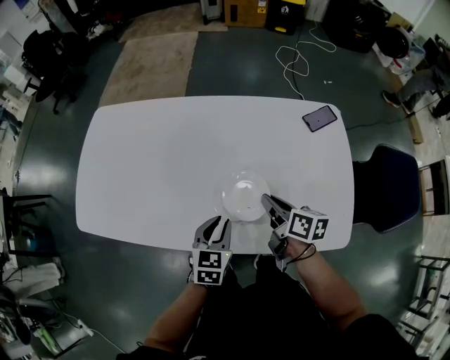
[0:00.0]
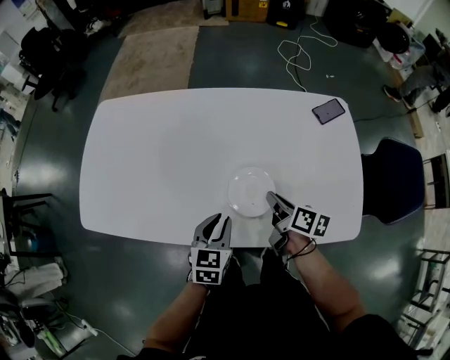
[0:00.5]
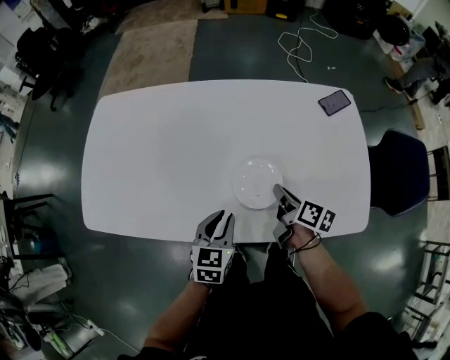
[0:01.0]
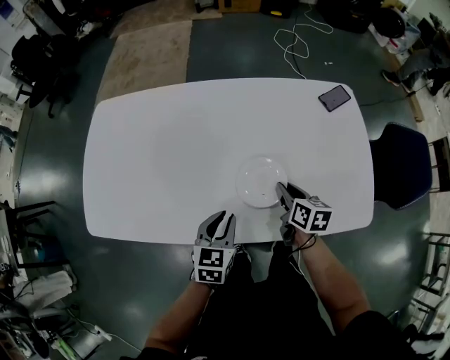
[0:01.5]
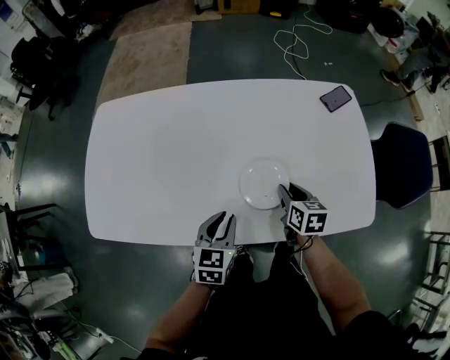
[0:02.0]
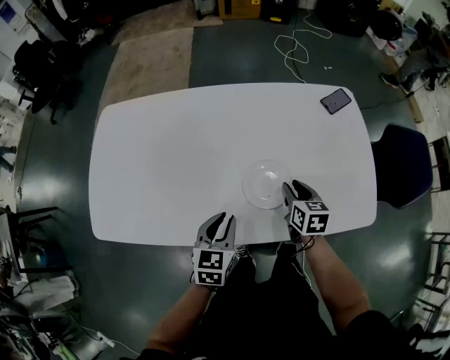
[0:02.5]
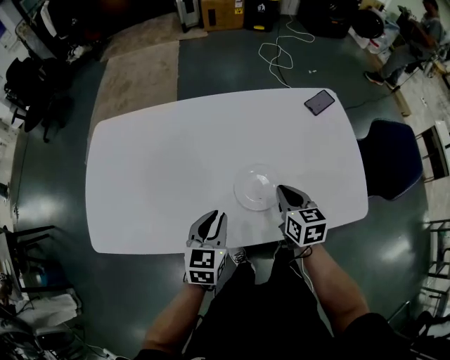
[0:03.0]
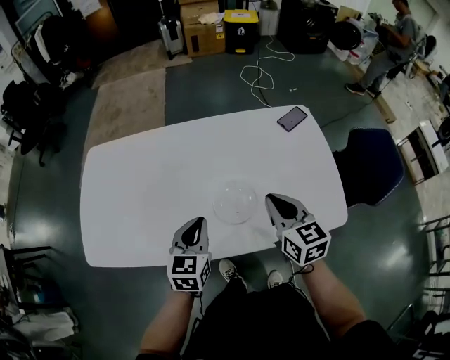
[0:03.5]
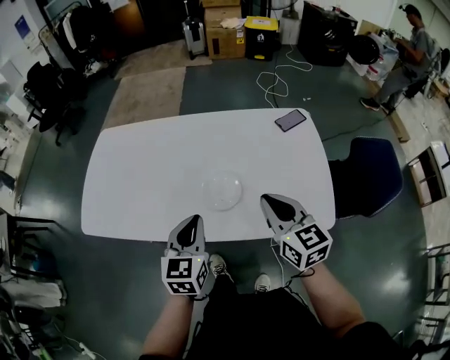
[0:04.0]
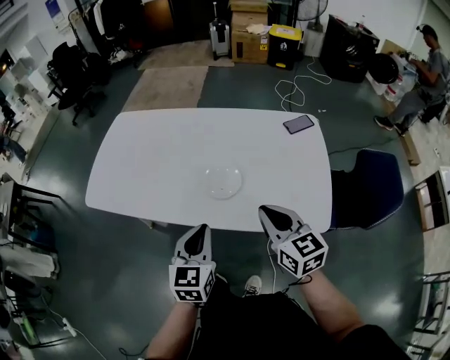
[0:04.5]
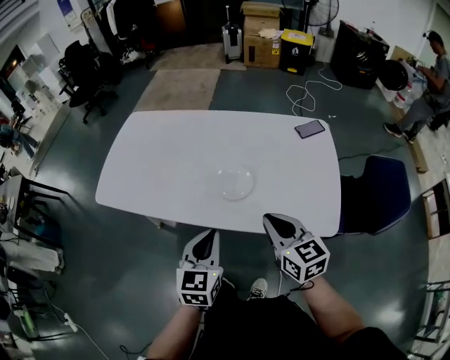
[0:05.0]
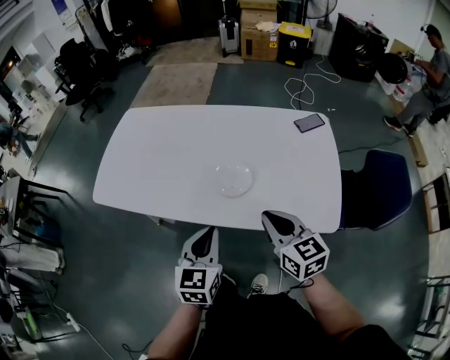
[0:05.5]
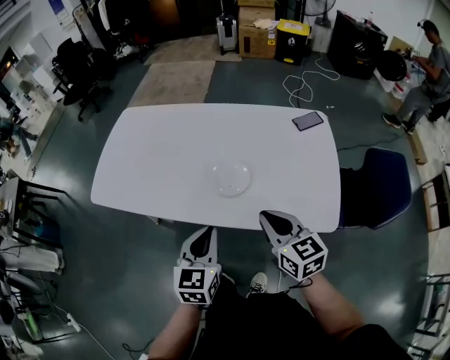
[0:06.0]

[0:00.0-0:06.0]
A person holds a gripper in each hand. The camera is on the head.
0:00.0 to 0:02.0: The left gripper travels to the left by approximately 10 cm. The right gripper shifts some 5 cm downward, changes its angle by approximately 30 degrees, and opens up.
0:02.0 to 0:04.0: The left gripper travels upward, to the right and backward by about 20 cm, while the right gripper goes approximately 25 cm upward and backward, changes its angle by roughly 40 degrees, and closes.
0:04.0 to 0:06.0: The two grippers go some 10 cm backward.

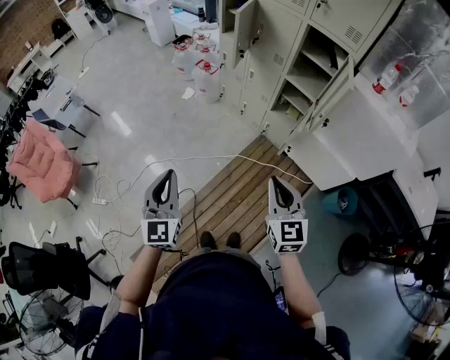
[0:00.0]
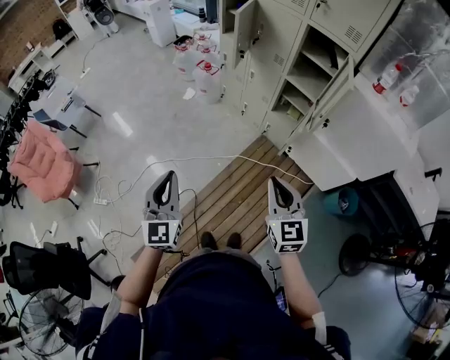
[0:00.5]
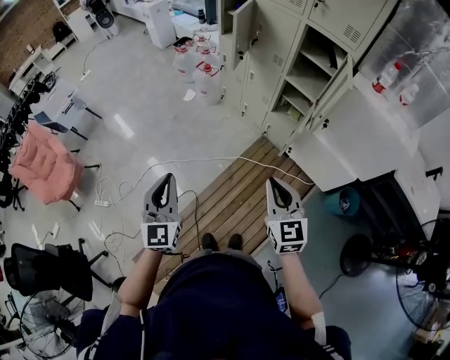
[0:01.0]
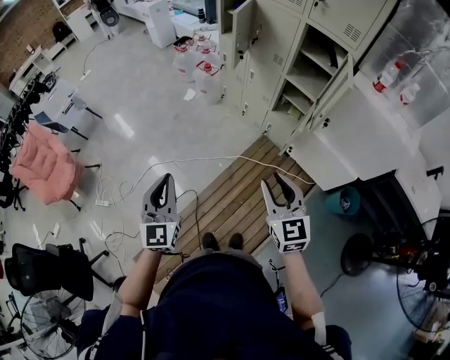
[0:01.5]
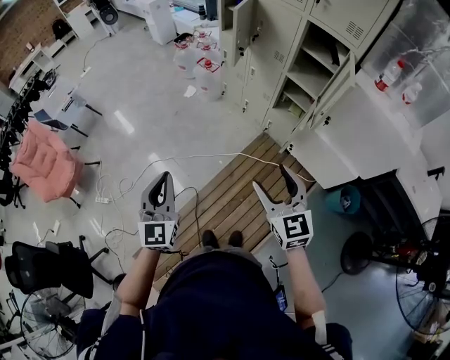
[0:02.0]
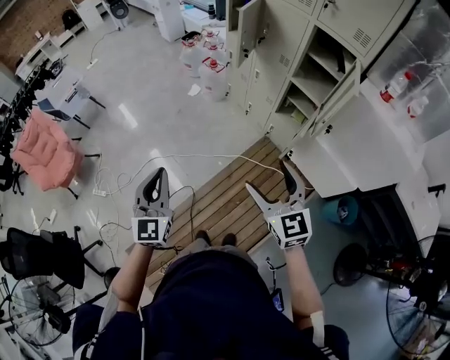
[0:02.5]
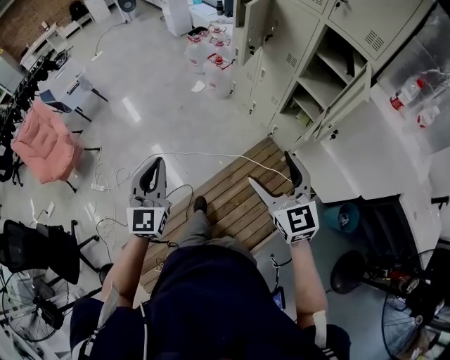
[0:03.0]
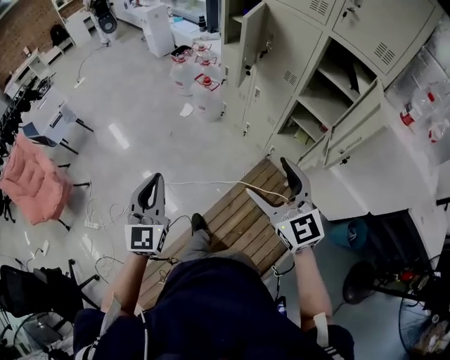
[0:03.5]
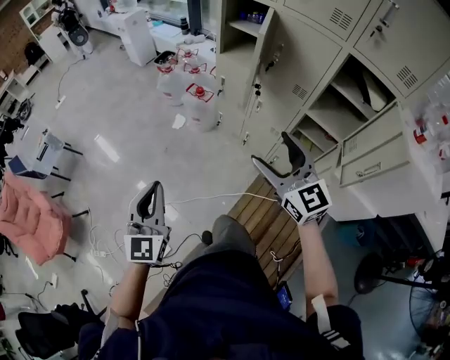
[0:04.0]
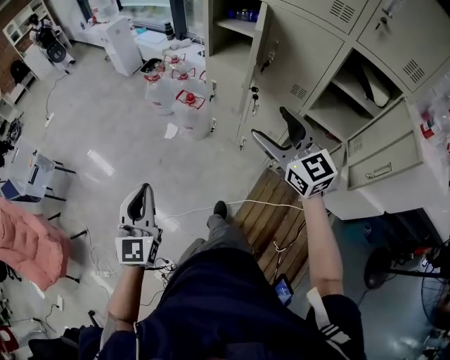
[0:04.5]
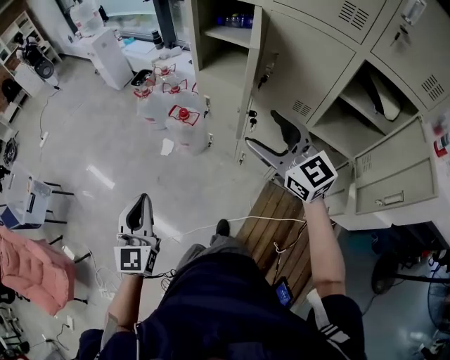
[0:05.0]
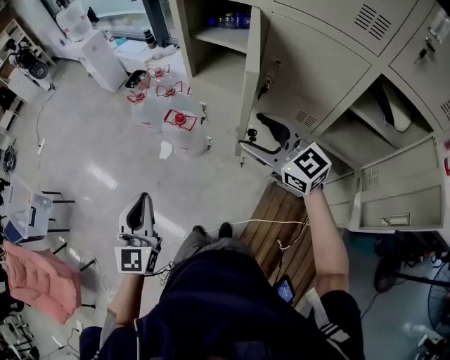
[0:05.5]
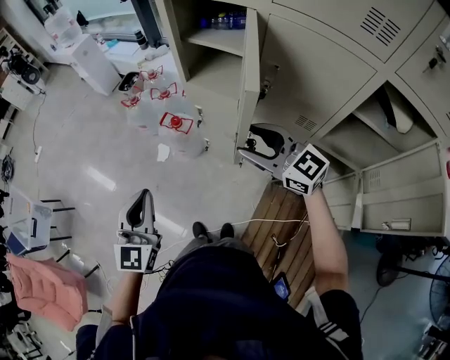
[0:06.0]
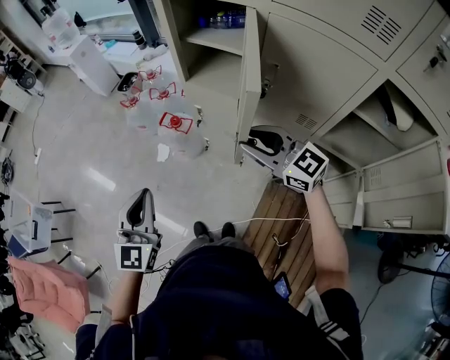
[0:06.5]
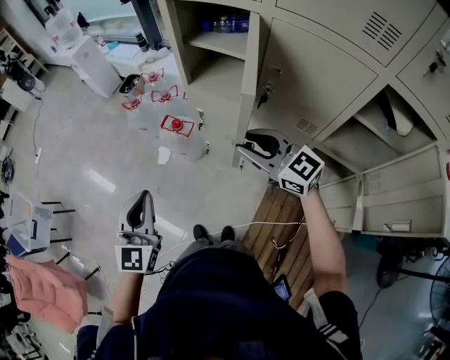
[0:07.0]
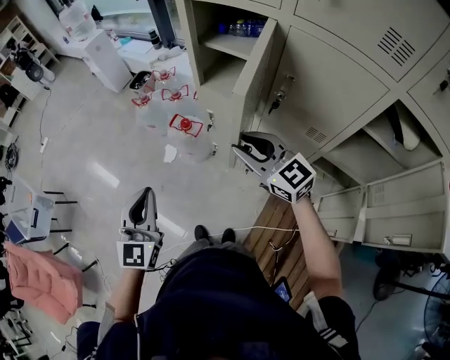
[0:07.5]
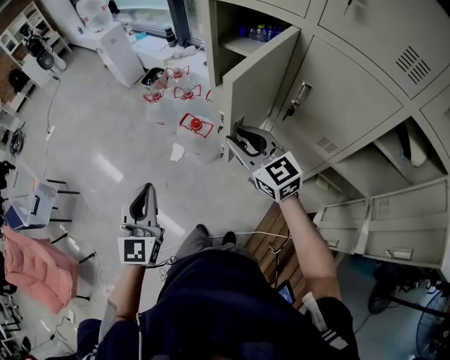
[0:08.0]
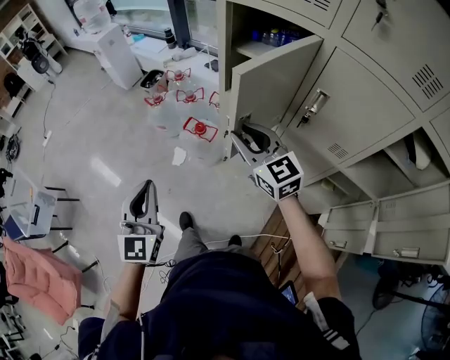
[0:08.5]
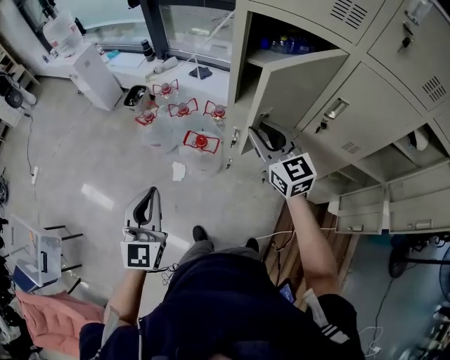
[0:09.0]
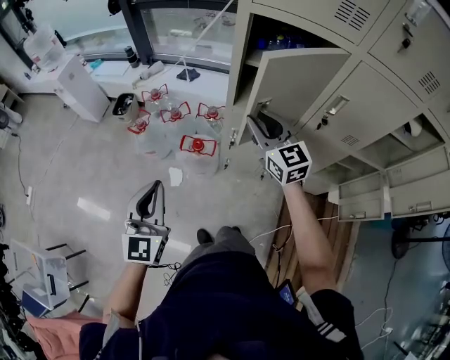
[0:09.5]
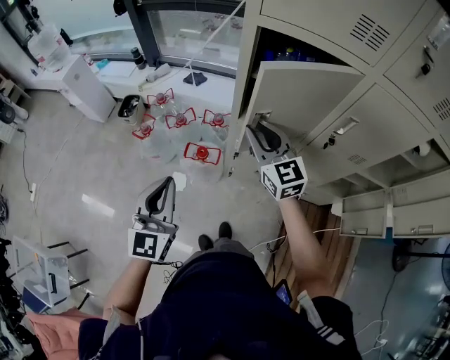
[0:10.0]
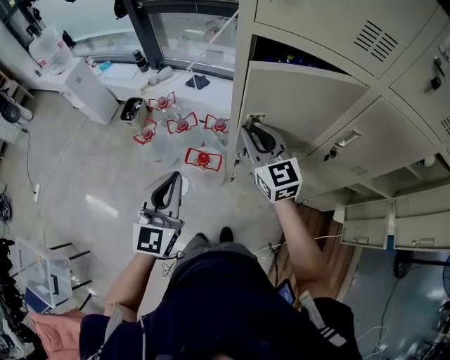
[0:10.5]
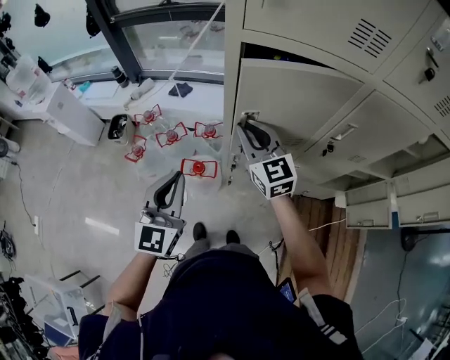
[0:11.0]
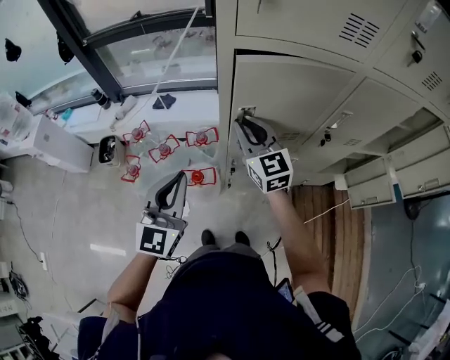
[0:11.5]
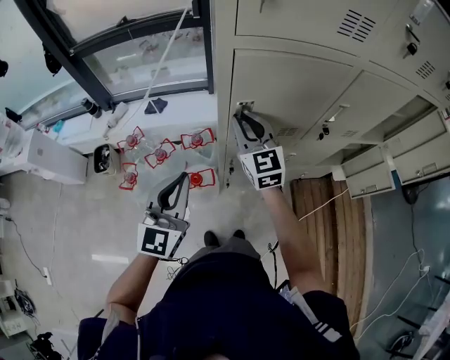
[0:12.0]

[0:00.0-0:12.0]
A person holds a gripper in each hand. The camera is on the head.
0:00.0 to 0:02.0: The right gripper opens.
0:02.0 to 0:04.0: Both grippers move forward, about 40 cm.
0:04.0 to 0:06.0: Both grippers move forward, some 35 cm.
0:06.0 to 0:08.0: The right gripper travels forward and to the left by roughly 10 cm.
0:08.0 to 0:10.0: The right gripper ends up about 20 cm from where it was, and changes its angle by roughly 30 degrees; the left gripper changes place by approximately 25 cm, and turns by roughly 30 degrees.
0:10.0 to 0:12.0: The left gripper ends up approximately 15 cm from where it was, and rotates roughly 30 degrees; the right gripper ends up about 10 cm from where it was, and swivels some 30 degrees.

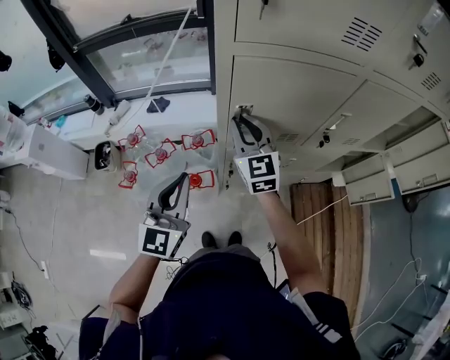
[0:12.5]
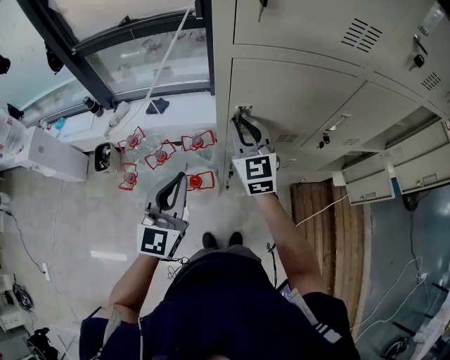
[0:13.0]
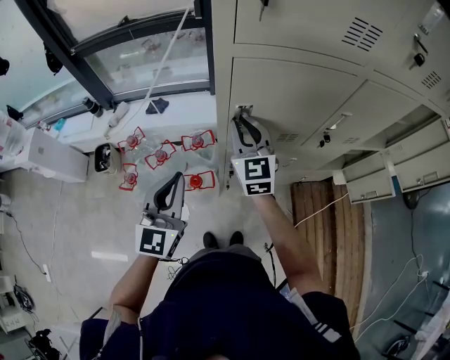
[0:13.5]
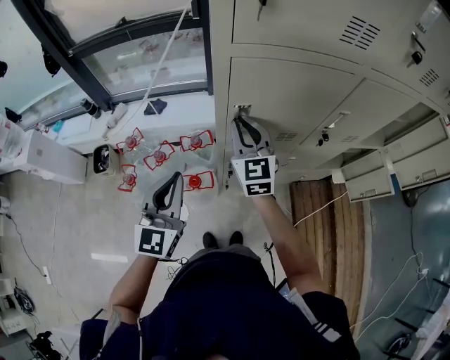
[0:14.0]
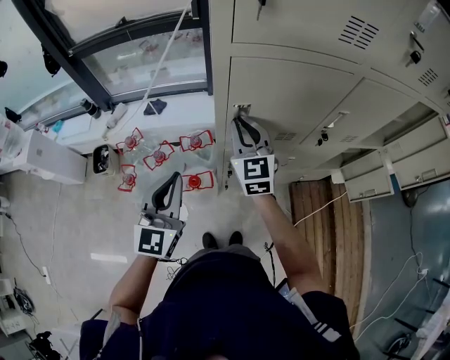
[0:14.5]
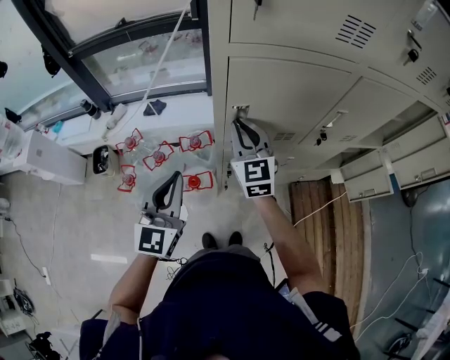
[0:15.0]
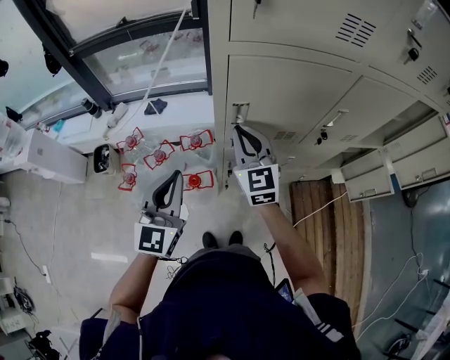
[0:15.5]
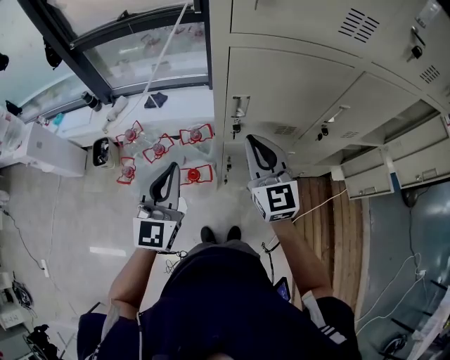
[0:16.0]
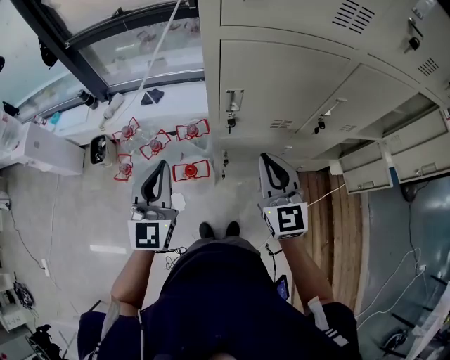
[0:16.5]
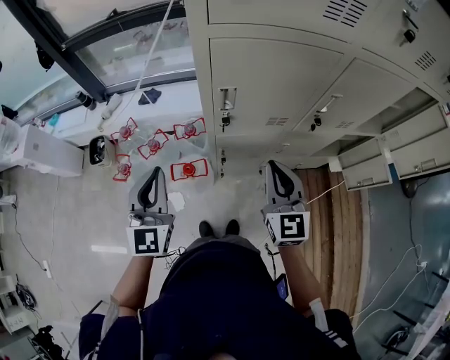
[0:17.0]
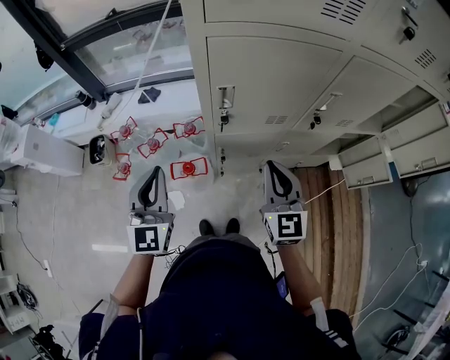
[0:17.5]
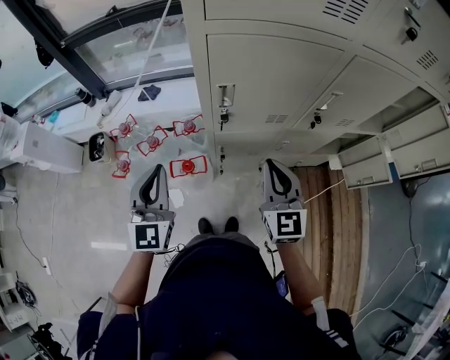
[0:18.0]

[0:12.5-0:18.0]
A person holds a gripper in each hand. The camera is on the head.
0:12.5 to 0:14.5: The grippers make only small movements.
0:14.5 to 0:16.0: The right gripper is displaced backward by approximately 10 cm.
0:16.0 to 0:18.0: The right gripper goes some 10 cm to the right and backward.

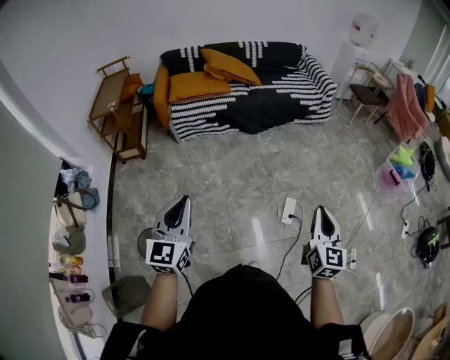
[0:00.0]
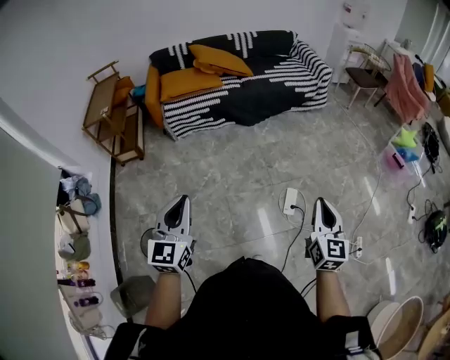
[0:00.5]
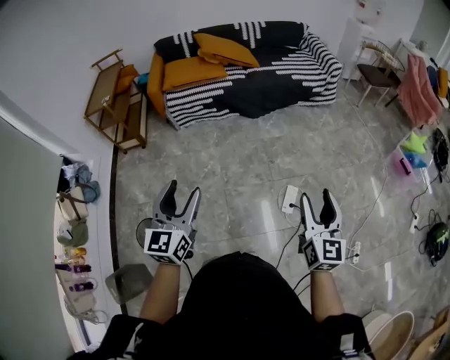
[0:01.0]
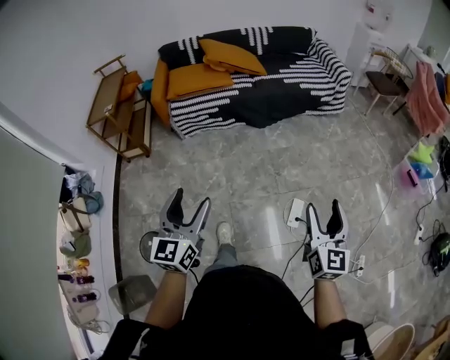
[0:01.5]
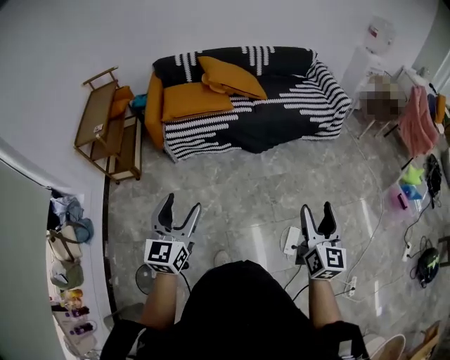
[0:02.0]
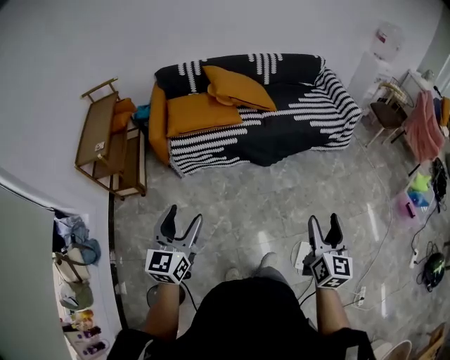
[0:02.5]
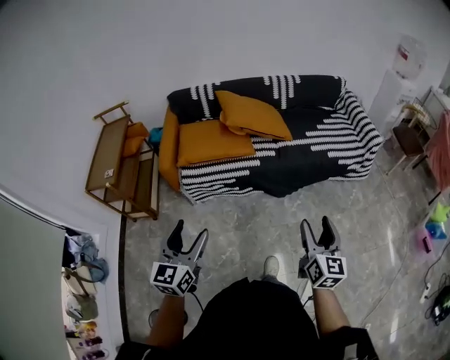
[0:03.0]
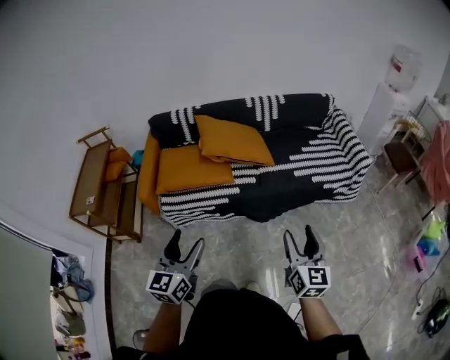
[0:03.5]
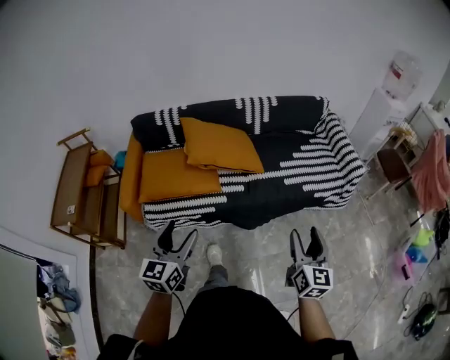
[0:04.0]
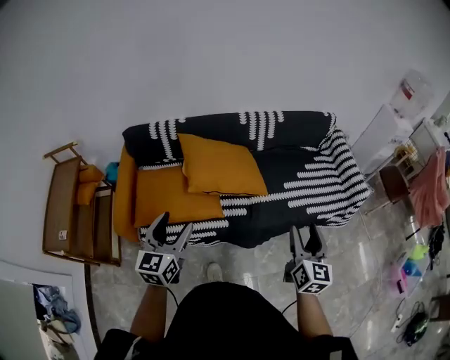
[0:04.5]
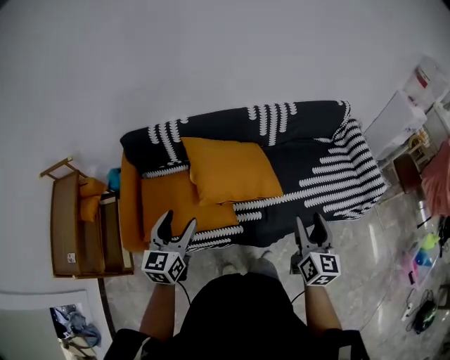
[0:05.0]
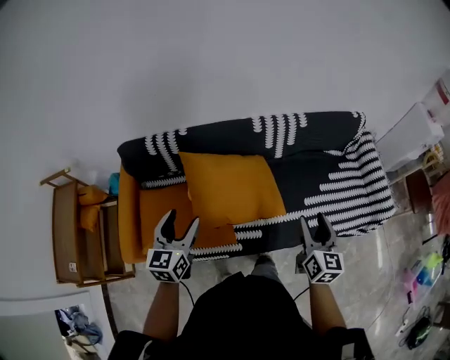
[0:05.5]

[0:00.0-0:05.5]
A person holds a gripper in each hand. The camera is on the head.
0:00.0 to 0:02.0: The grippers both shift forward by approximately 25 cm. The left gripper opens up. The right gripper opens.
0:02.0 to 0:03.5: The two grippers go approximately 35 cm forward.
0:03.5 to 0:05.5: The two grippers travel together, forward, roughly 50 cm.
